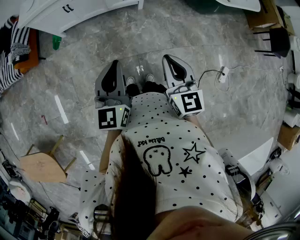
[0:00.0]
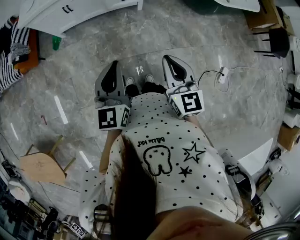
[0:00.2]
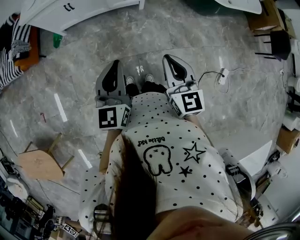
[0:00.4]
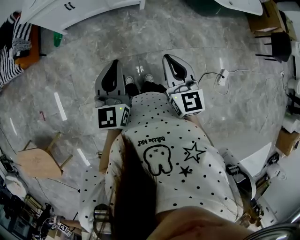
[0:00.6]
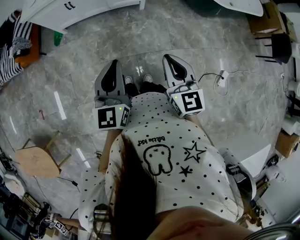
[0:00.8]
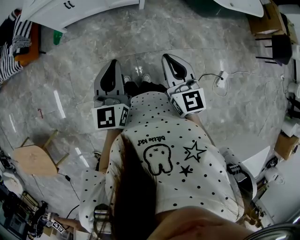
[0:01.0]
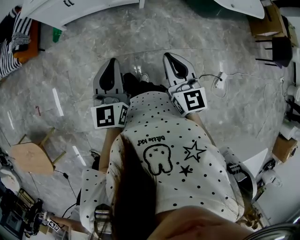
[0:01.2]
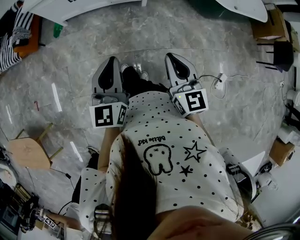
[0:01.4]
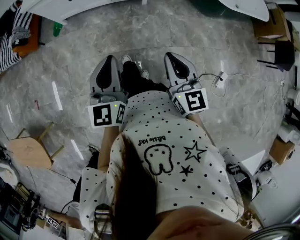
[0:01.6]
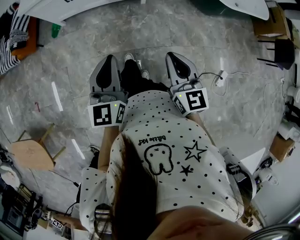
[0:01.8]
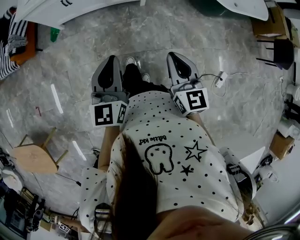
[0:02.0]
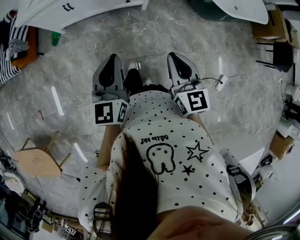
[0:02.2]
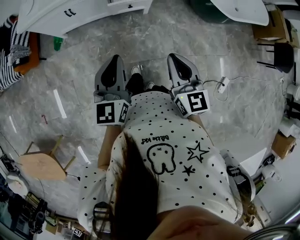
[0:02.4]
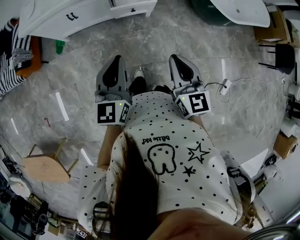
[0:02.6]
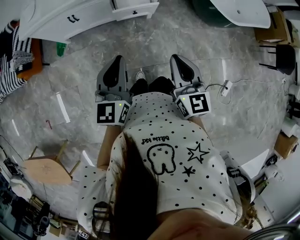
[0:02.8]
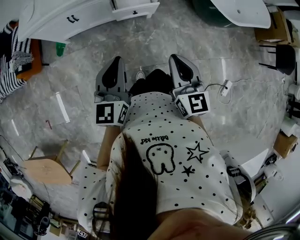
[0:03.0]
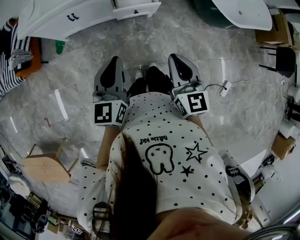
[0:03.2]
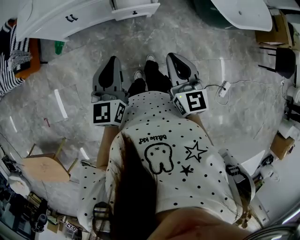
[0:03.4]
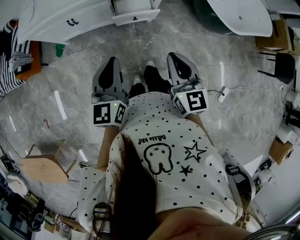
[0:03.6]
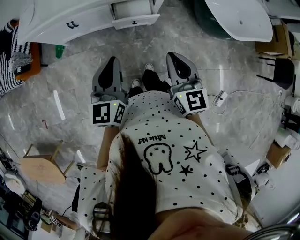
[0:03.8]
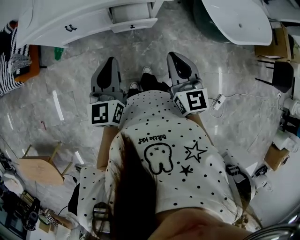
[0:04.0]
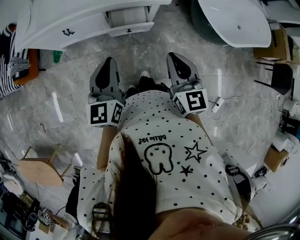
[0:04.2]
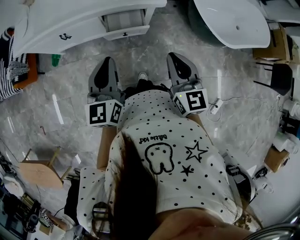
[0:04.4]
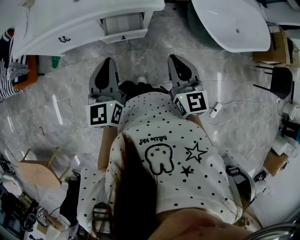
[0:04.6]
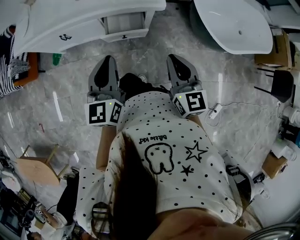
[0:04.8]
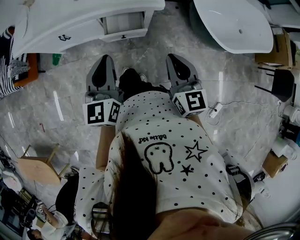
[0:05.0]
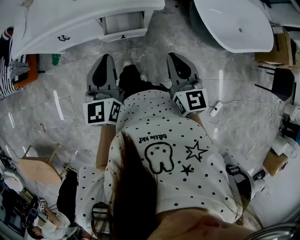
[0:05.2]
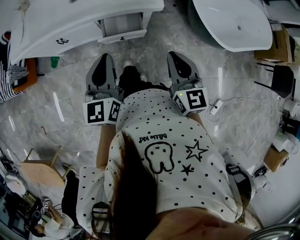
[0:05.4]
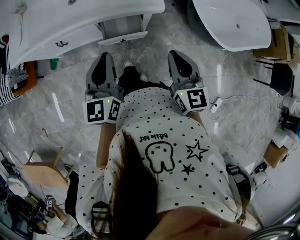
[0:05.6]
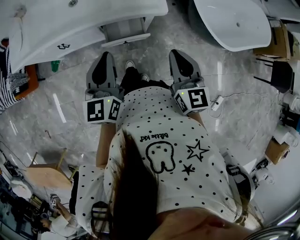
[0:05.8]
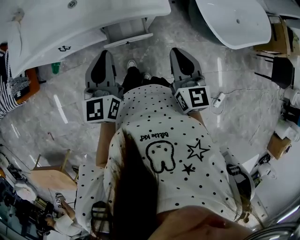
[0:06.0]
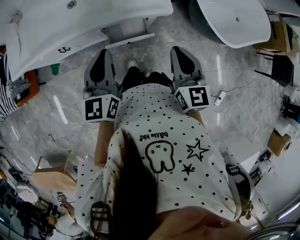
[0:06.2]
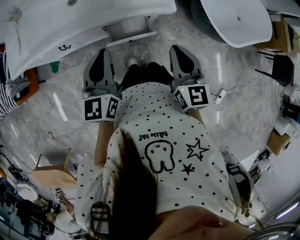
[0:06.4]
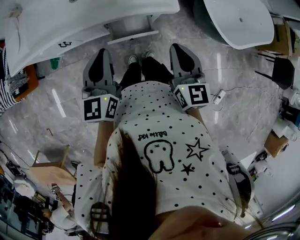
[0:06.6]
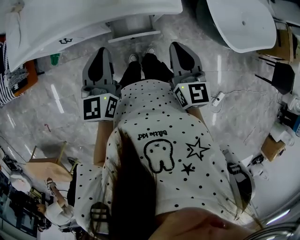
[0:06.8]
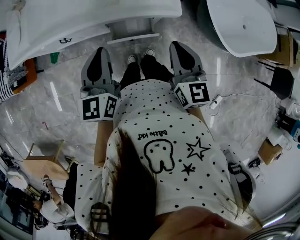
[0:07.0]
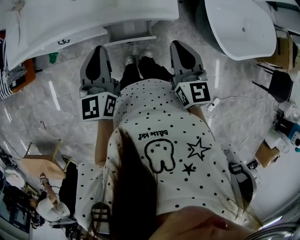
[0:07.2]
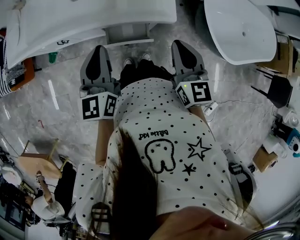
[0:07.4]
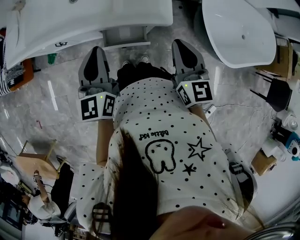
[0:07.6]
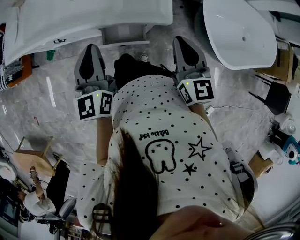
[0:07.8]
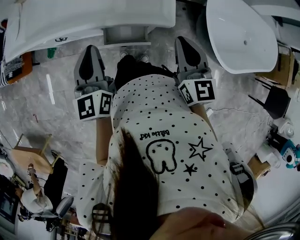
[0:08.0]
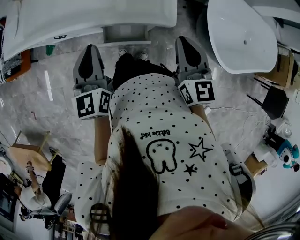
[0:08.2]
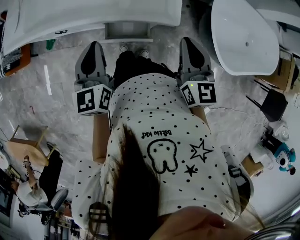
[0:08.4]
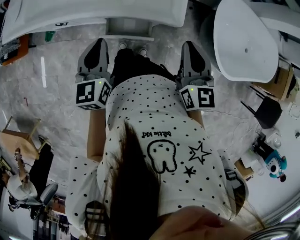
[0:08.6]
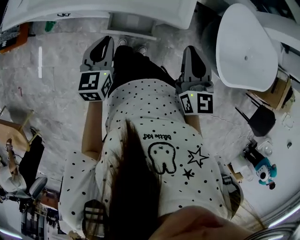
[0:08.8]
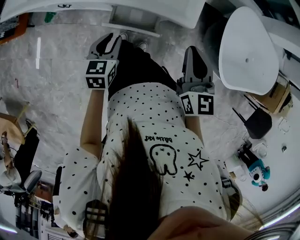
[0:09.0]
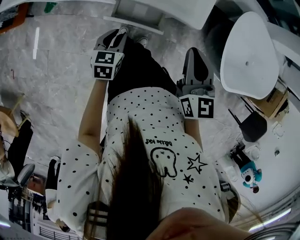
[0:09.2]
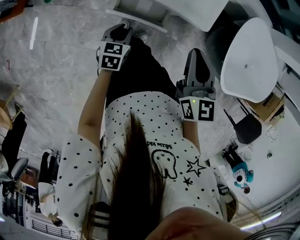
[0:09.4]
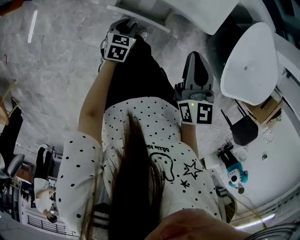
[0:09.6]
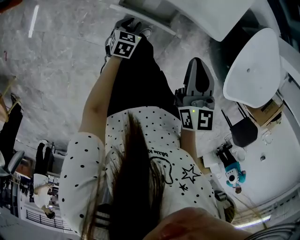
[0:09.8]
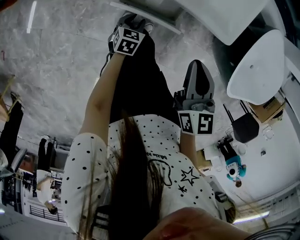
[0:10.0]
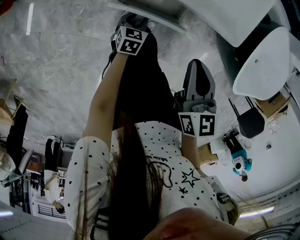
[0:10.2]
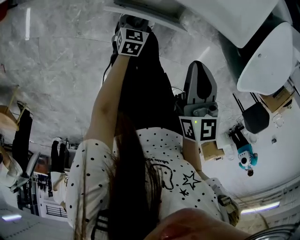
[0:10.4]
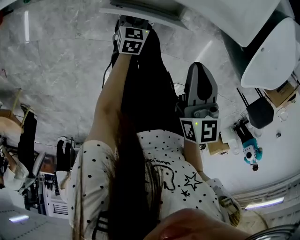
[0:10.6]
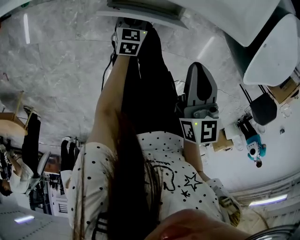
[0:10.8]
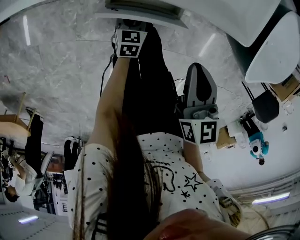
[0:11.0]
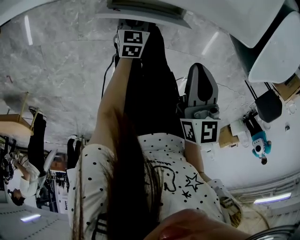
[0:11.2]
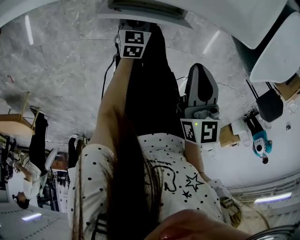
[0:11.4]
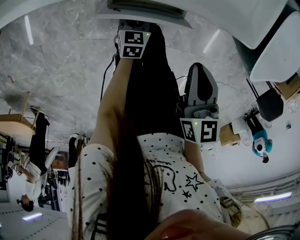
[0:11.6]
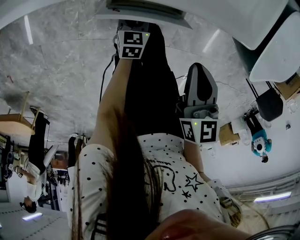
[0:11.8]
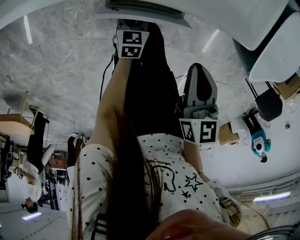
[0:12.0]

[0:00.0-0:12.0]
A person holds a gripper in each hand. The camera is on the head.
0:00.0 to 0:01.6: The right gripper is displaced to the right by roughly 5 cm.
0:01.6 to 0:03.0: The grippers both shift forward by roughly 20 cm.
0:03.0 to 0:04.4: The grippers both shift forward and to the right by approximately 15 cm.
0:04.4 to 0:06.0: Both grippers travel together forward, about 15 cm.
0:06.0 to 0:07.6: The left gripper heads forward, covering approximately 5 cm. The right gripper is displaced forward by approximately 10 cm.
0:07.6 to 0:09.0: The left gripper is displaced downward by about 20 cm, angles its fingers downward, by some 30 degrees, and opens up.
0:09.0 to 0:10.4: The right gripper shifts approximately 15 cm downward, while the left gripper moves downward, some 30 cm.
0:10.4 to 0:12.0: The right gripper shifts about 5 cm downward.

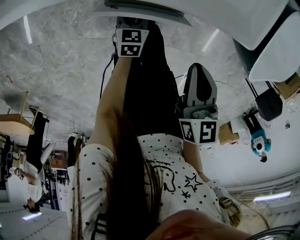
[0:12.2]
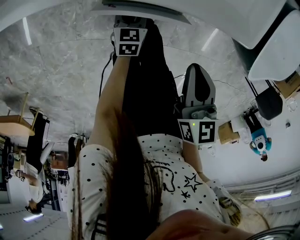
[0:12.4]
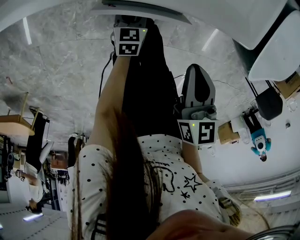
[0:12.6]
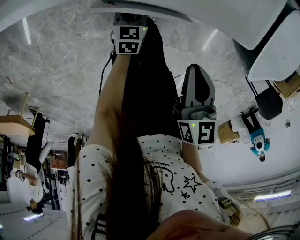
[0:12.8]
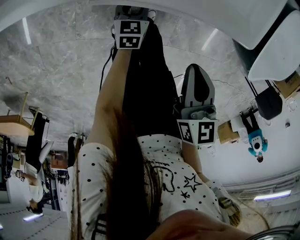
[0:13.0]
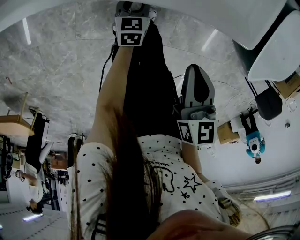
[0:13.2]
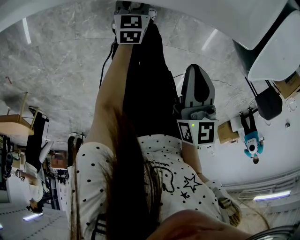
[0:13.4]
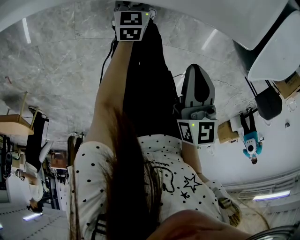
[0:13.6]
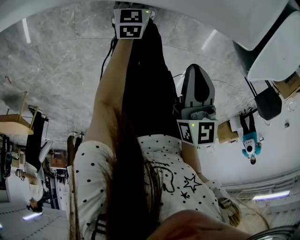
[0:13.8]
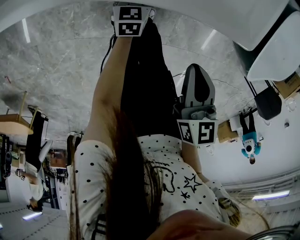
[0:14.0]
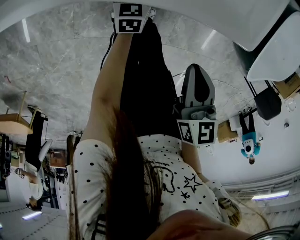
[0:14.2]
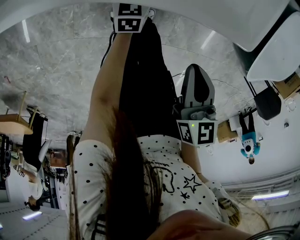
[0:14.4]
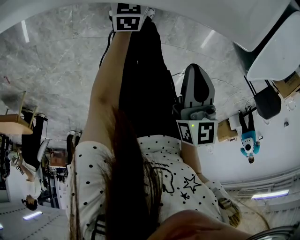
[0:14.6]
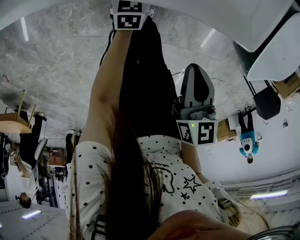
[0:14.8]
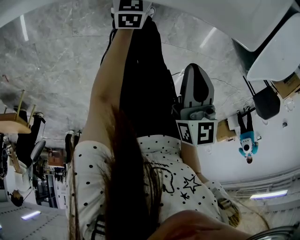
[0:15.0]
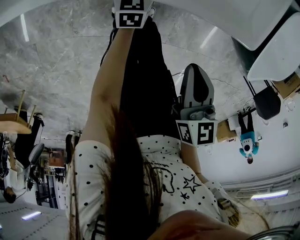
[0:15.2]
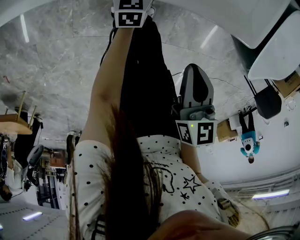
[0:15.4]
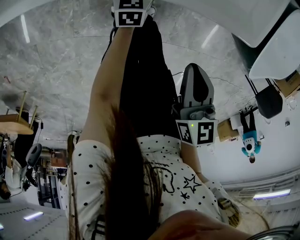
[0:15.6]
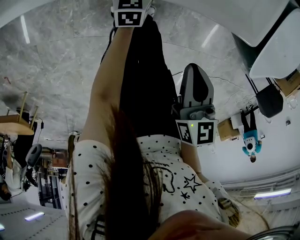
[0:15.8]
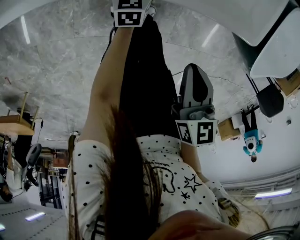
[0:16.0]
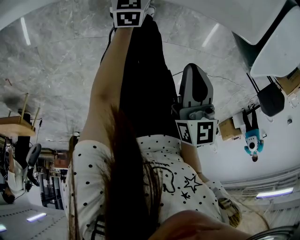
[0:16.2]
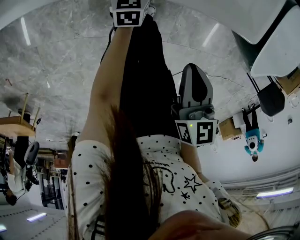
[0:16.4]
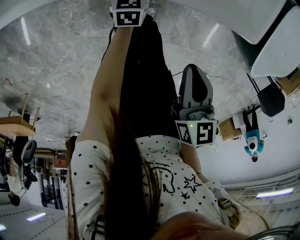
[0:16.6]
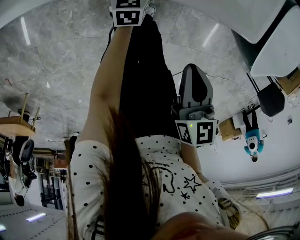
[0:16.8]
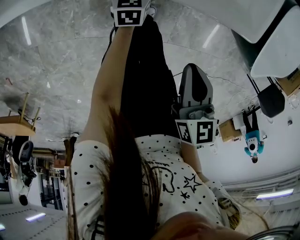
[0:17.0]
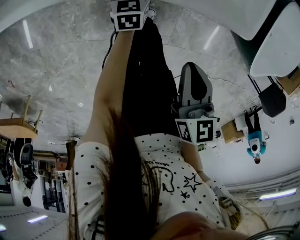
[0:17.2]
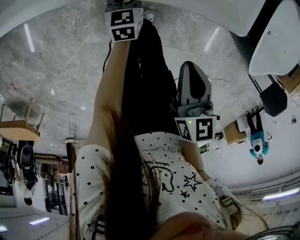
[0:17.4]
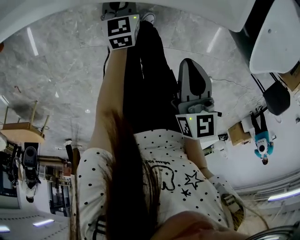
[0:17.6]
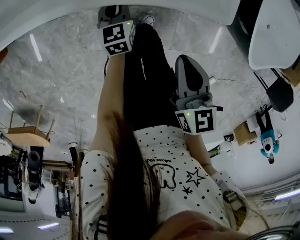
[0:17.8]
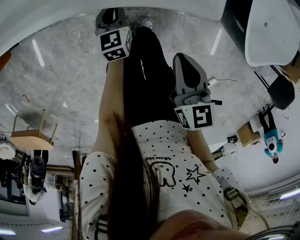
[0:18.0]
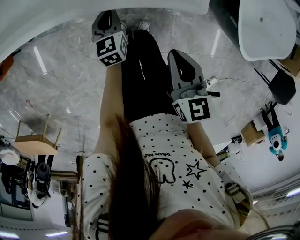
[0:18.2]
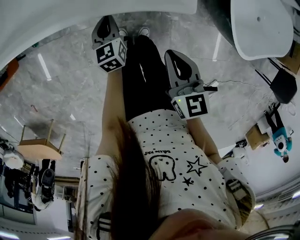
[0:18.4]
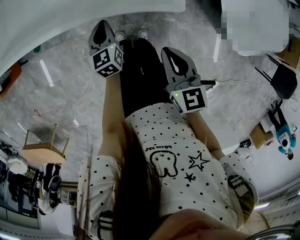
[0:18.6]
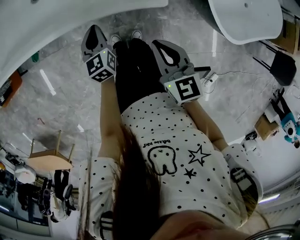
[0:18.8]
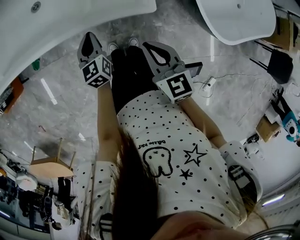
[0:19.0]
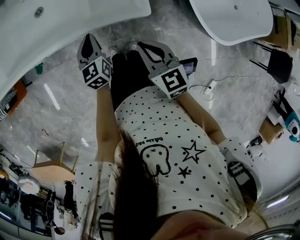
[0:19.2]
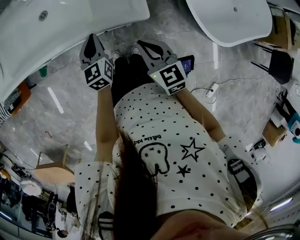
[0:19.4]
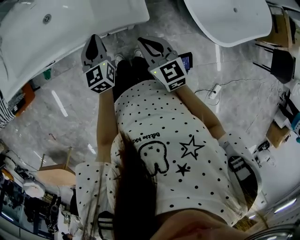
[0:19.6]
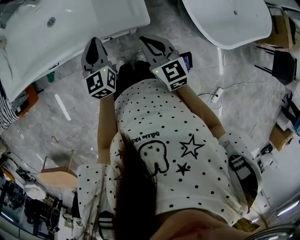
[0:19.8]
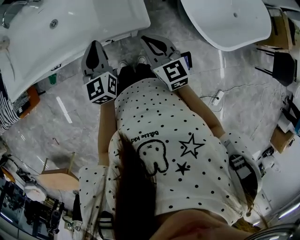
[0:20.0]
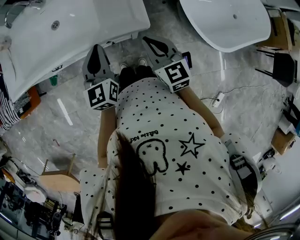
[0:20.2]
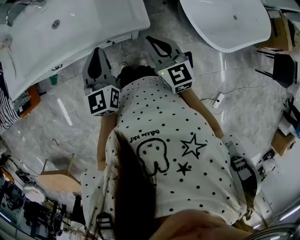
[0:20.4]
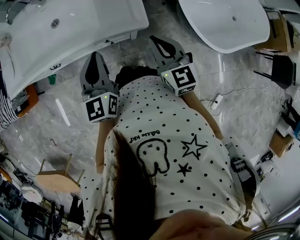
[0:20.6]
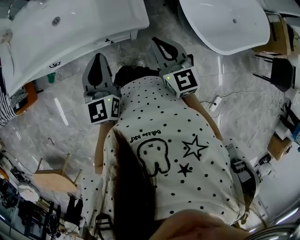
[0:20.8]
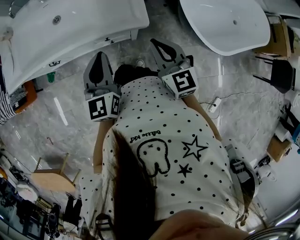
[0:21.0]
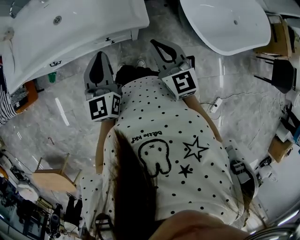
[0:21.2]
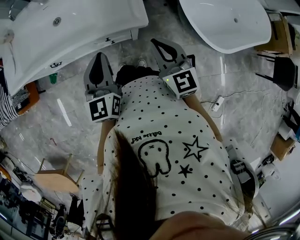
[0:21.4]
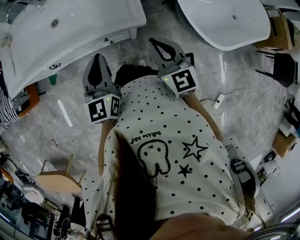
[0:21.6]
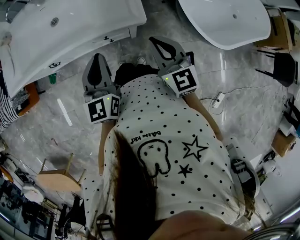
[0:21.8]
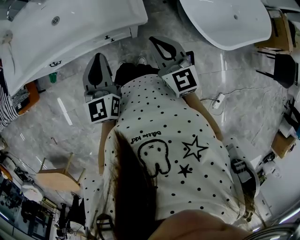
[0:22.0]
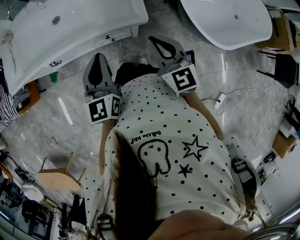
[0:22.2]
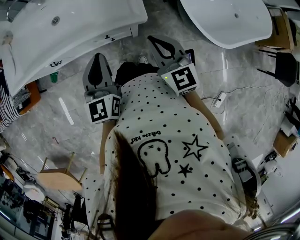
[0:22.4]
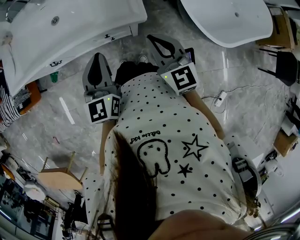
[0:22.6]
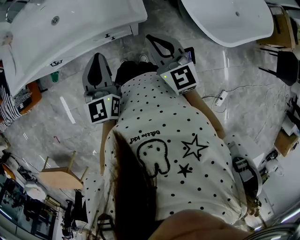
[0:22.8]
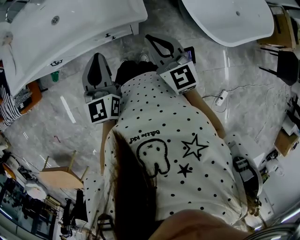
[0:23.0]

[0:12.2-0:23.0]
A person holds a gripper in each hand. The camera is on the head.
0:12.2 to 0:13.8: The left gripper heads forward, covering about 10 cm.
0:13.8 to 0:16.8: The grippers make only small movements.
0:16.8 to 0:18.4: The right gripper is displaced upward by some 5 cm; the left gripper moves upward, approximately 15 cm, and closes up.
0:18.4 to 0:20.0: The right gripper heads upward and forward, covering approximately 10 cm. Meanwhile the left gripper is displaced upward by approximately 25 cm, and turns by about 20 degrees.
0:20.0 to 0:21.4: The right gripper ends up approximately 5 cm from where it was, while the left gripper is displaced backward by some 10 cm.
0:21.4 to 0:23.0: Both grippers stay put.

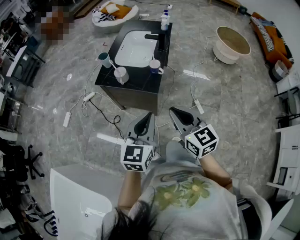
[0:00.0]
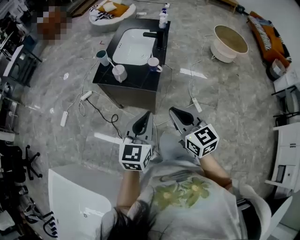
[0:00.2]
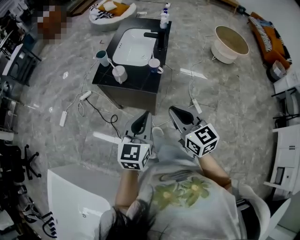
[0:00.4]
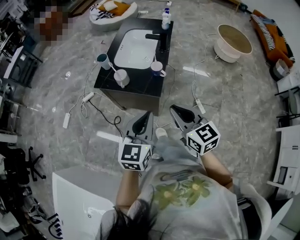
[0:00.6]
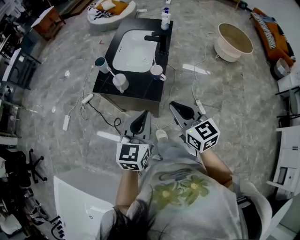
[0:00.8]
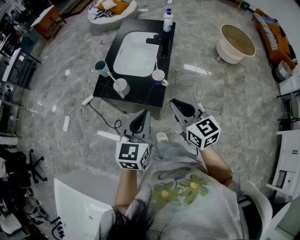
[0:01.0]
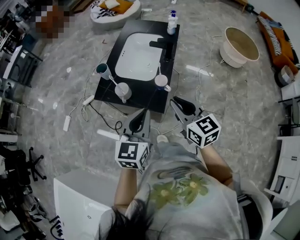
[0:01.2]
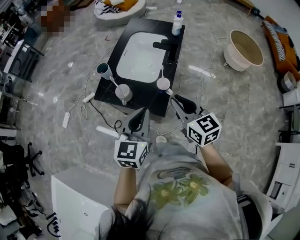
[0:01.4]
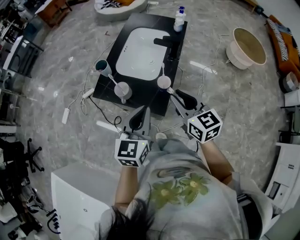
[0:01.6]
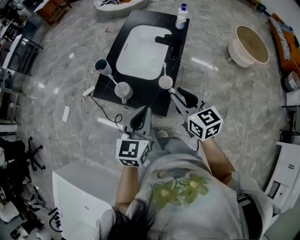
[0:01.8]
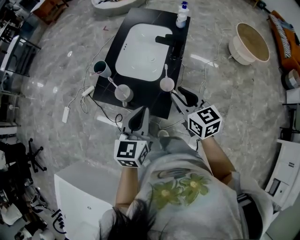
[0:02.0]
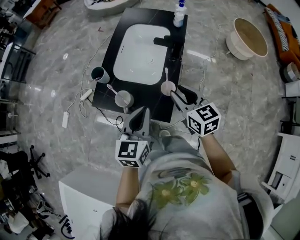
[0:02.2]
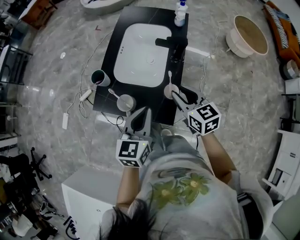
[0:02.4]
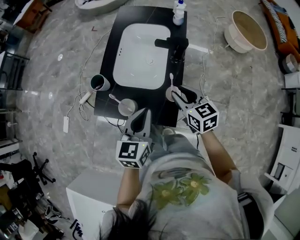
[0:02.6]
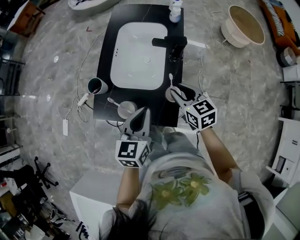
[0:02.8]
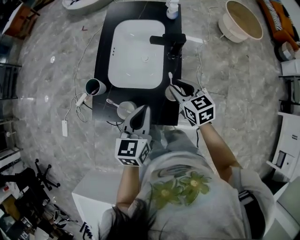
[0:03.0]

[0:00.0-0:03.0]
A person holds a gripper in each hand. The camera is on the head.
0:00.0 to 0:01.6: The grippers both shift forward by roughly 30 cm.
0:01.6 to 0:03.0: The two grippers go approximately 20 cm forward and downward. The right gripper swivels roughly 20 degrees.
